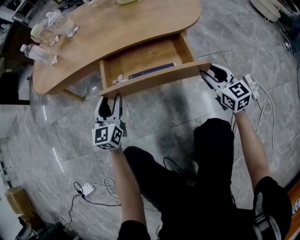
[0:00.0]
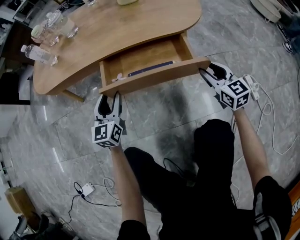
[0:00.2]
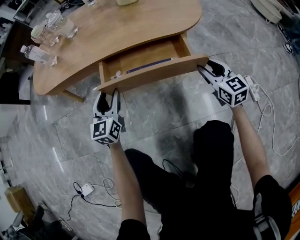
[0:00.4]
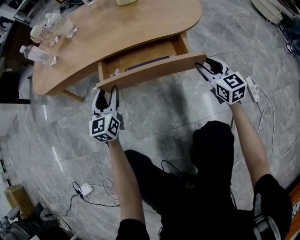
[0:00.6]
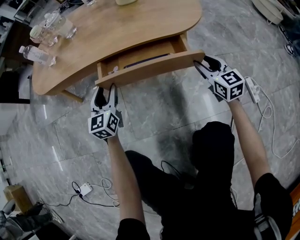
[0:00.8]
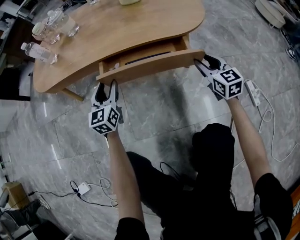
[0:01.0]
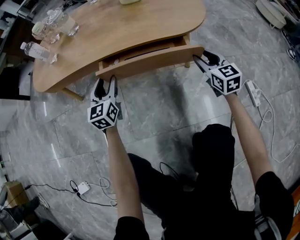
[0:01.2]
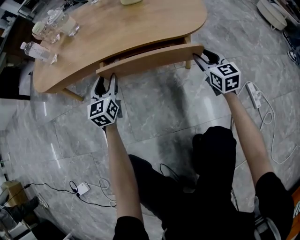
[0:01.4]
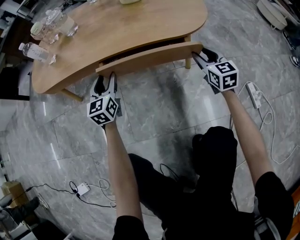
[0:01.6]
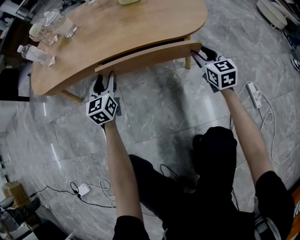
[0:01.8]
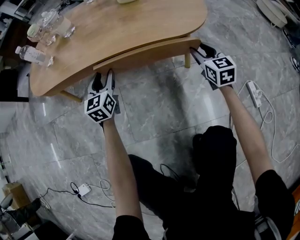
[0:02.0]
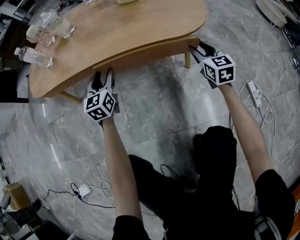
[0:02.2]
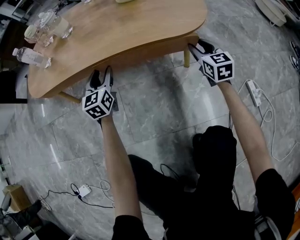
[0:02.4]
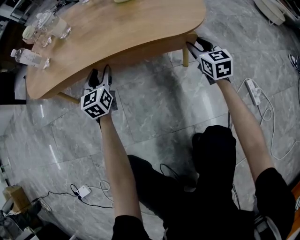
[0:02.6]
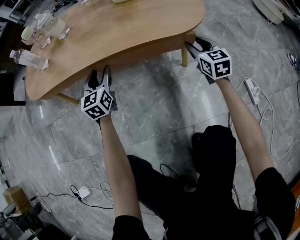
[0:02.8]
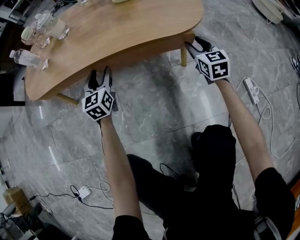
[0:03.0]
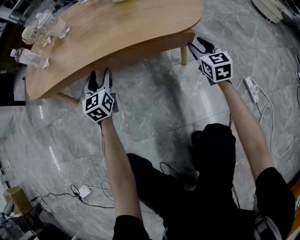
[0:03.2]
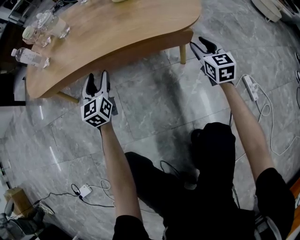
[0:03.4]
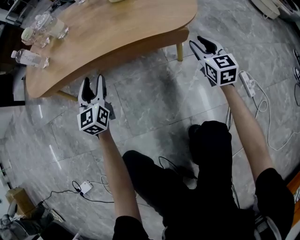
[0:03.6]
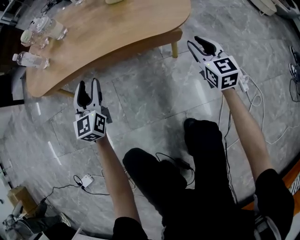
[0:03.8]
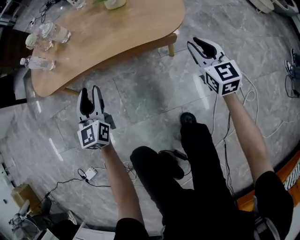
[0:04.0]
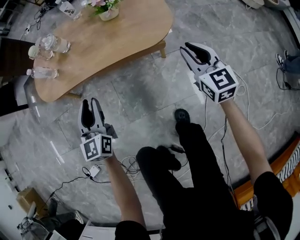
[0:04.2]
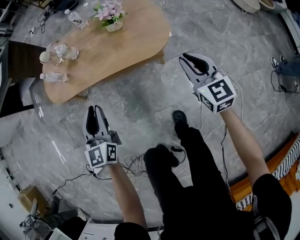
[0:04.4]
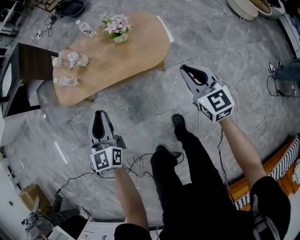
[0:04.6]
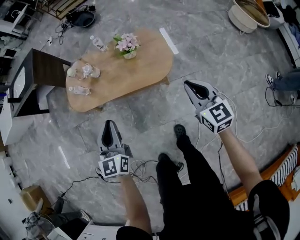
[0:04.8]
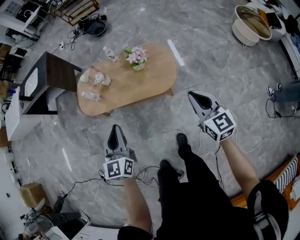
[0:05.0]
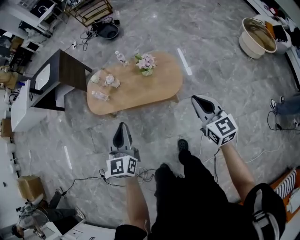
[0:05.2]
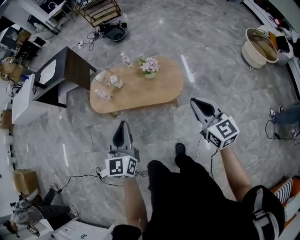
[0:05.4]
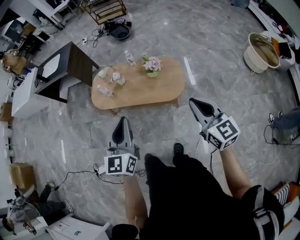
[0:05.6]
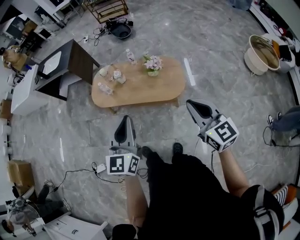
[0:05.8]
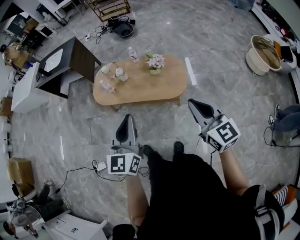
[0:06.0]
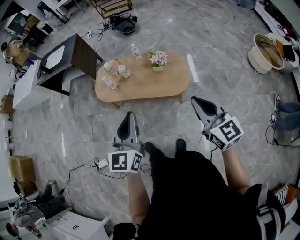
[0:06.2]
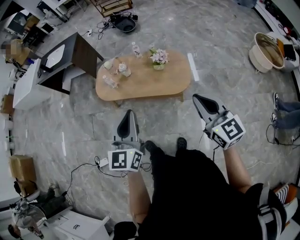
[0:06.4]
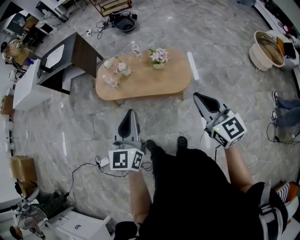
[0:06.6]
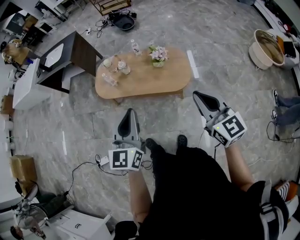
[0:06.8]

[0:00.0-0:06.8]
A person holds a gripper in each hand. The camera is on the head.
0:00.0 to 0:01.4: The grippers both shift forward by some 10 cm.
0:01.4 to 0:02.8: The two grippers go roughly 5 cm forward.
0:02.8 to 0:04.0: Both grippers move upward and backward, approximately 25 cm.
0:04.0 to 0:05.4: Both grippers move upward, roughly 60 cm. The left gripper closes its fingers.
0:05.4 to 0:06.8: The right gripper moves to the left, roughly 5 cm.

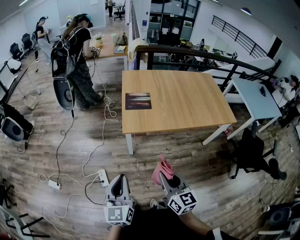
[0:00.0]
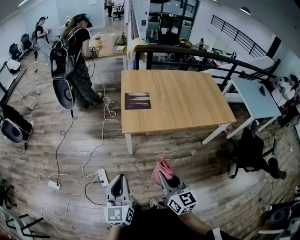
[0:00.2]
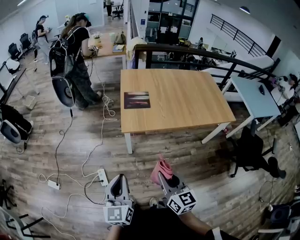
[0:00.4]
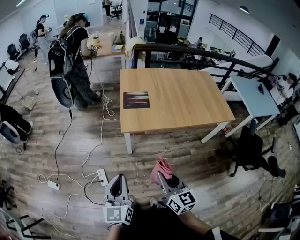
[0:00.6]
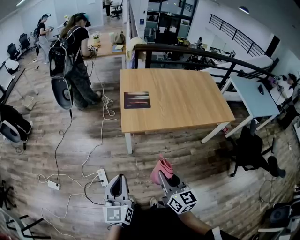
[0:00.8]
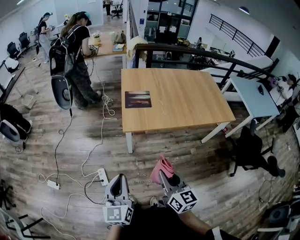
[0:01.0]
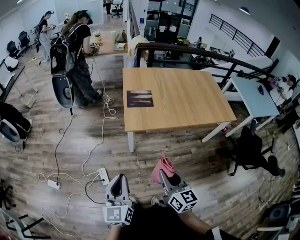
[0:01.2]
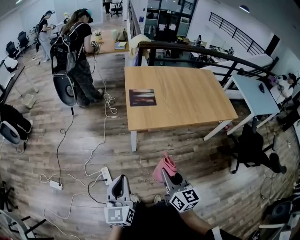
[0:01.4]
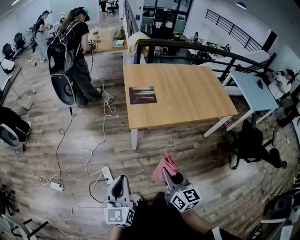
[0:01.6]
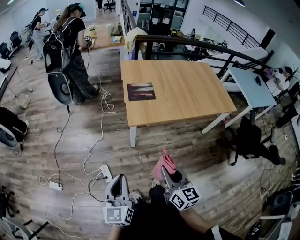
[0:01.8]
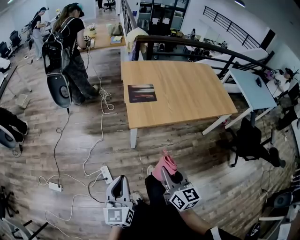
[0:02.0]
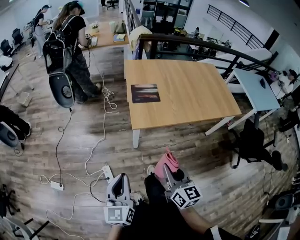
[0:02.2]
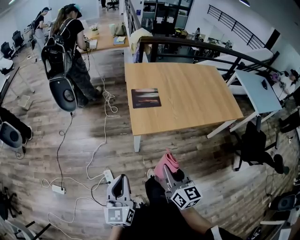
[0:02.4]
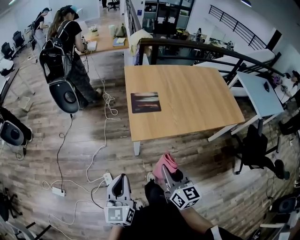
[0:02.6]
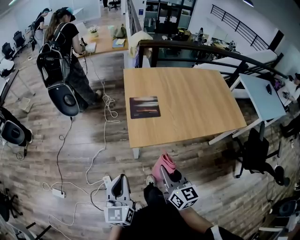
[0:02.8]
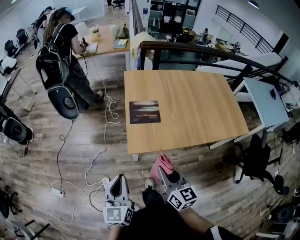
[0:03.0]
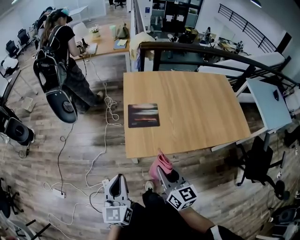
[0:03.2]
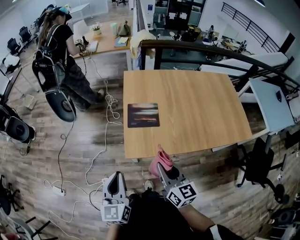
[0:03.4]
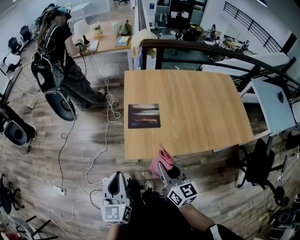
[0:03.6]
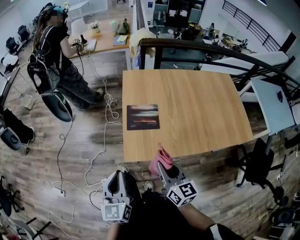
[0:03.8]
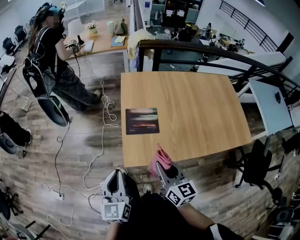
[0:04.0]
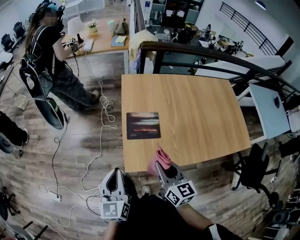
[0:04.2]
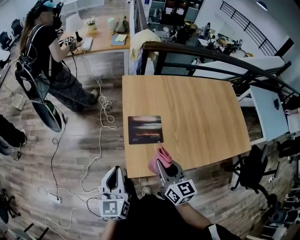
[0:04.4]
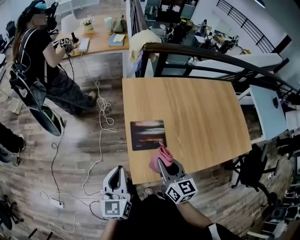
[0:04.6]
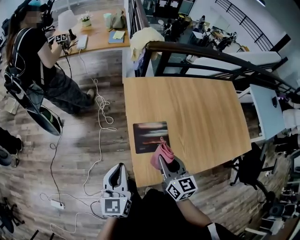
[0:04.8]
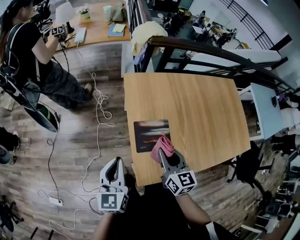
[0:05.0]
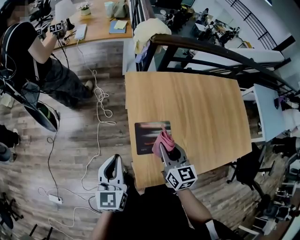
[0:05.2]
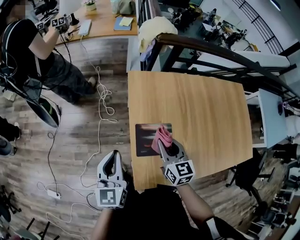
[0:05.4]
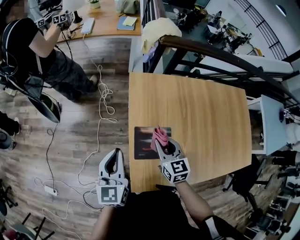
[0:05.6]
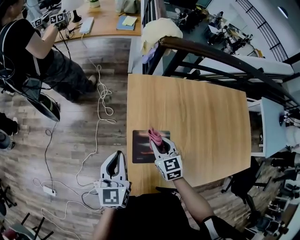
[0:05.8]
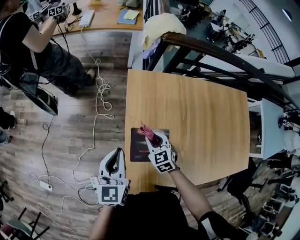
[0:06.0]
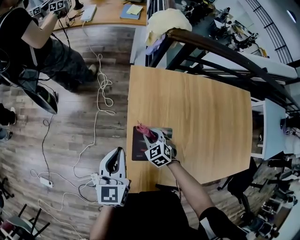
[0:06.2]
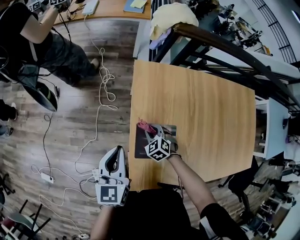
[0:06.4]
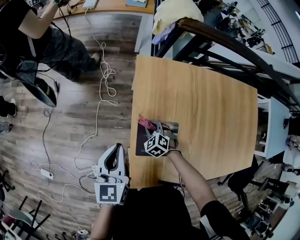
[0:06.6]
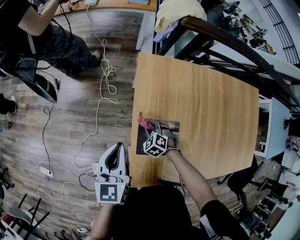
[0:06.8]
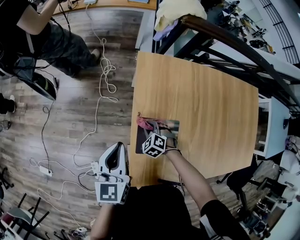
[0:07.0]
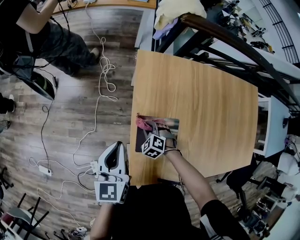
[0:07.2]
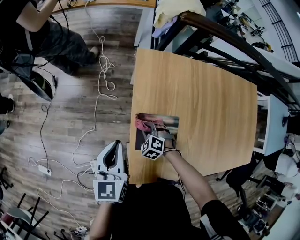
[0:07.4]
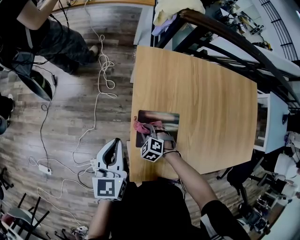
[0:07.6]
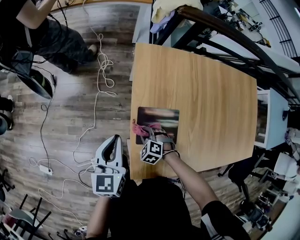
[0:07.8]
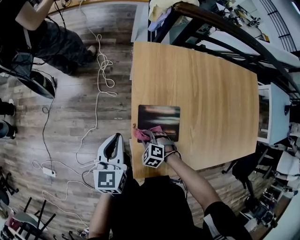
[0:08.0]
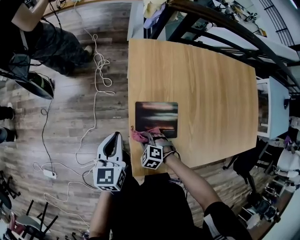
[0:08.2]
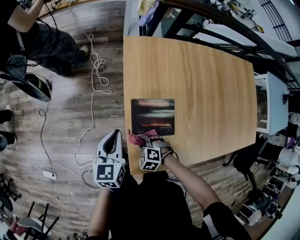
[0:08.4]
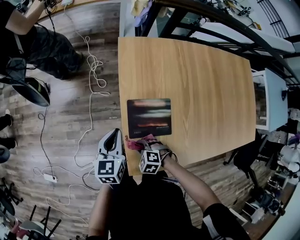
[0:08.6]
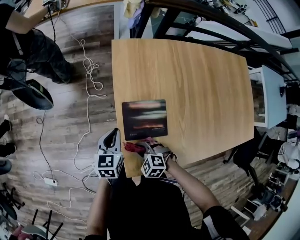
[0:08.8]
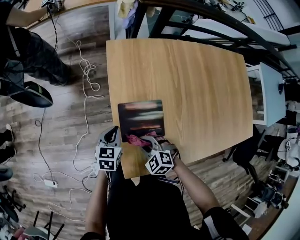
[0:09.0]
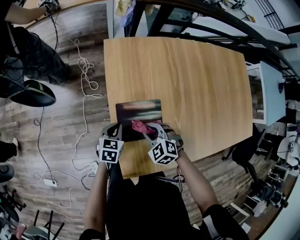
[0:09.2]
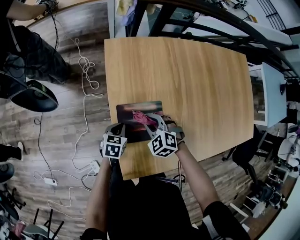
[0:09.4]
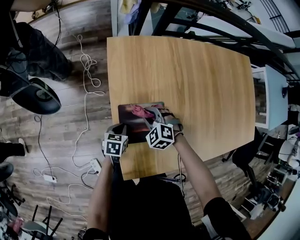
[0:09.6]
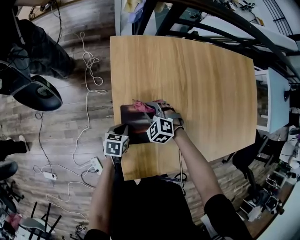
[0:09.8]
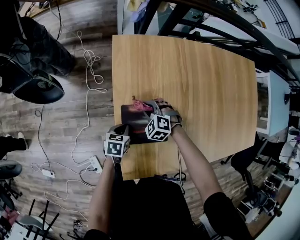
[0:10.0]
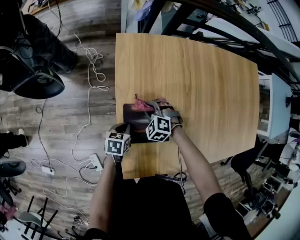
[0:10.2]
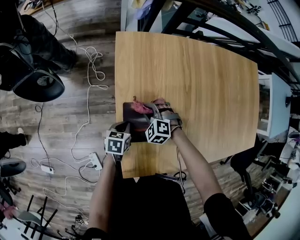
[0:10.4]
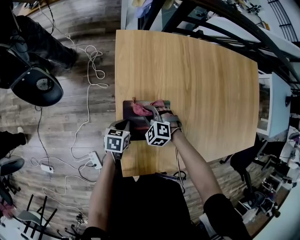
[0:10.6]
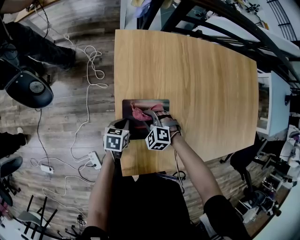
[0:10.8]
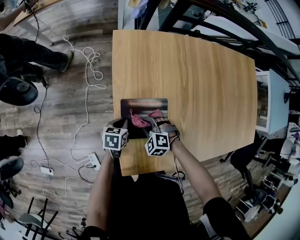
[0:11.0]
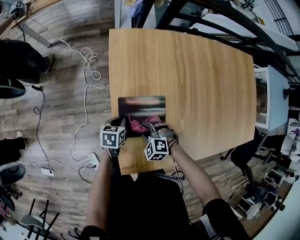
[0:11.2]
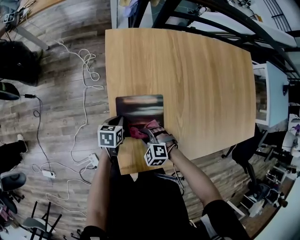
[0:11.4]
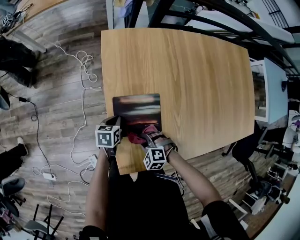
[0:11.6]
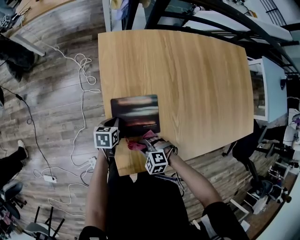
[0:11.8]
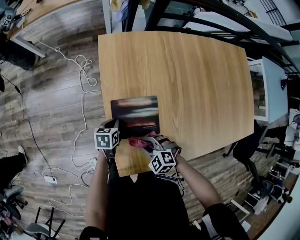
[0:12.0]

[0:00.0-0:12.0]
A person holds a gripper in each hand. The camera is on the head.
0:00.0 to 0:01.6: The grippers both shift to the left by some 5 cm.
0:01.6 to 0:03.0: Both grippers travel together forward, some 20 cm.
0:03.0 to 0:04.4: Both grippers travel together forward, about 20 cm.
0:04.4 to 0:06.0: The left gripper shifts approximately 25 cm forward, while the right gripper moves forward and downward, approximately 35 cm, and changes its angle by roughly 40 degrees.
0:06.0 to 0:07.6: The left gripper moves roughly 5 cm. The right gripper travels downward, to the left and backward by approximately 15 cm, and turns by roughly 40 degrees.
0:07.6 to 0:09.0: The right gripper travels backward and upward by approximately 10 cm. Meanwhile the left gripper moves downward and to the right, some 20 cm, and changes its angle by approximately 30 degrees.
0:09.0 to 0:10.4: The right gripper goes about 15 cm forward, while the left gripper heads downward, covering about 10 cm, and rotates about 20 degrees.
0:10.4 to 0:12.0: The right gripper is displaced backward by roughly 20 cm.

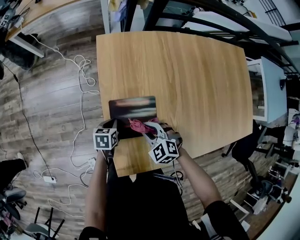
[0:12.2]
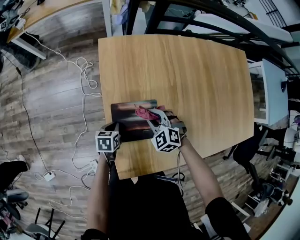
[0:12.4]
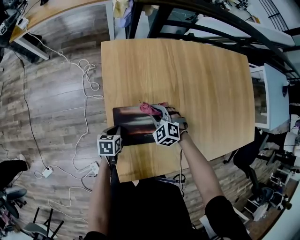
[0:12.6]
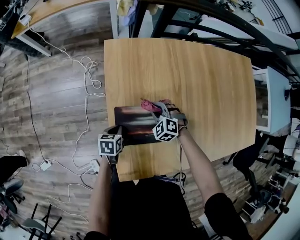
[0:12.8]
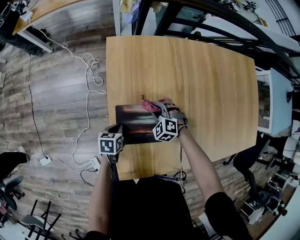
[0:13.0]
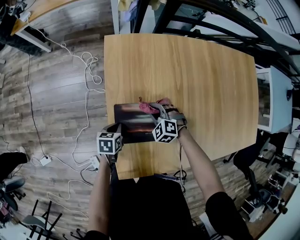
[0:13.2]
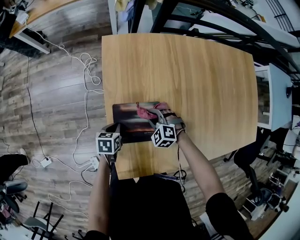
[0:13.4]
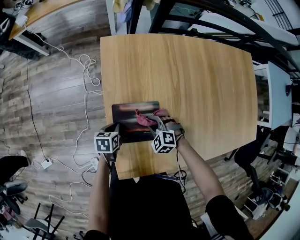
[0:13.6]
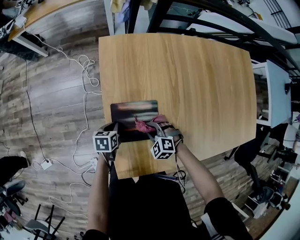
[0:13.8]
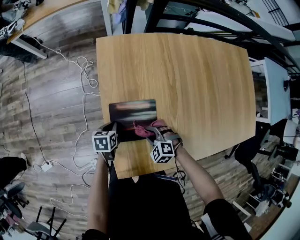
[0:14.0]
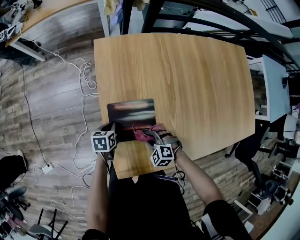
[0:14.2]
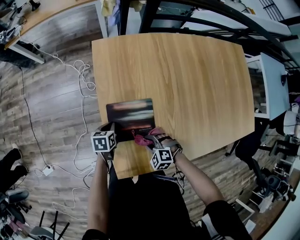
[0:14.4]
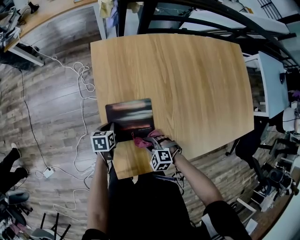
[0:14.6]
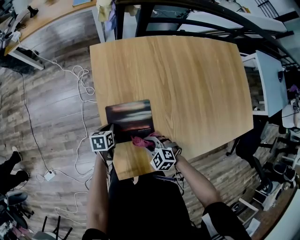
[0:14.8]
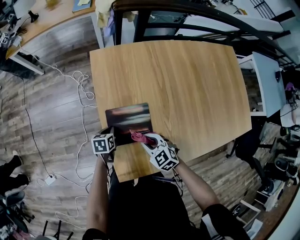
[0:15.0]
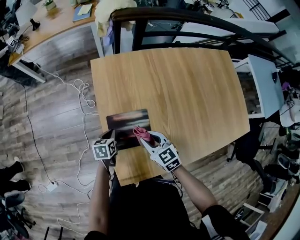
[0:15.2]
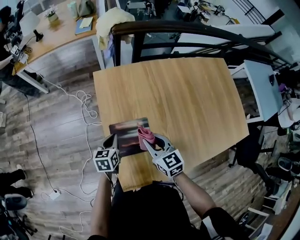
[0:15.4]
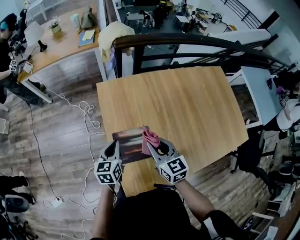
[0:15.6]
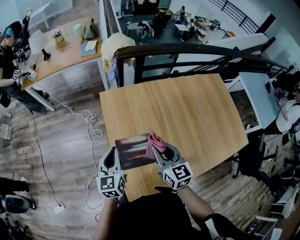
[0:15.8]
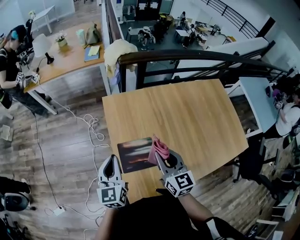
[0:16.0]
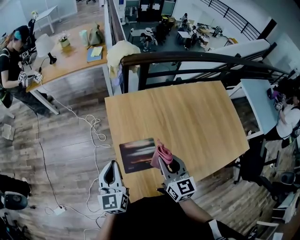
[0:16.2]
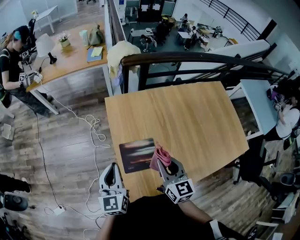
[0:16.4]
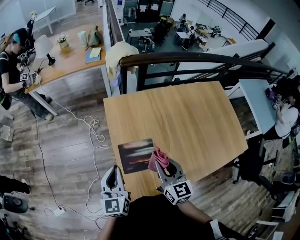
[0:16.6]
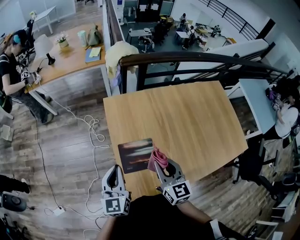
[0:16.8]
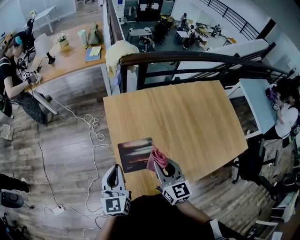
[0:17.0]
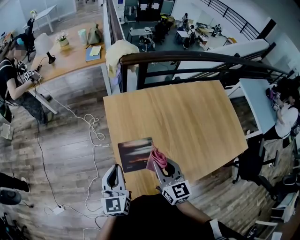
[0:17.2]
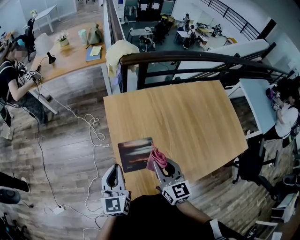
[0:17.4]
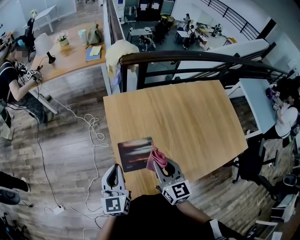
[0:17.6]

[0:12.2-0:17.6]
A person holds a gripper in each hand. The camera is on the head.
0:12.2 to 0:13.6: The right gripper heads downward, covering some 5 cm, and moves roughly 15 cm forward and comes back.
0:13.6 to 0:15.0: The right gripper goes some 10 cm upward and backward, and turns by approximately 30 degrees.
0:15.0 to 0:16.2: The grippers both shift upward by approximately 30 cm. The right gripper points its fingers approximately 30 degrees further upward. Meanwhile the left gripper tilts its fingers about 50 degrees upward.
0:16.2 to 0:17.6: The grippers move only a little.
